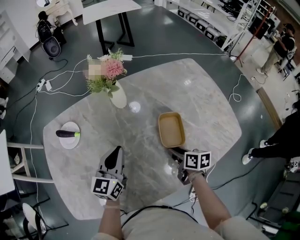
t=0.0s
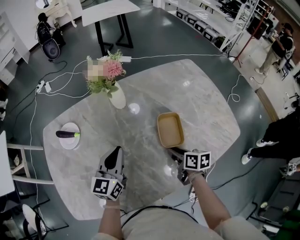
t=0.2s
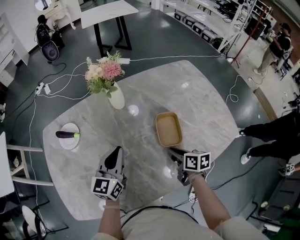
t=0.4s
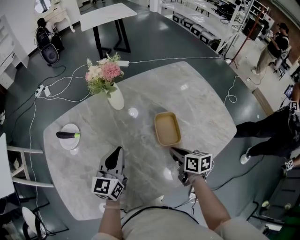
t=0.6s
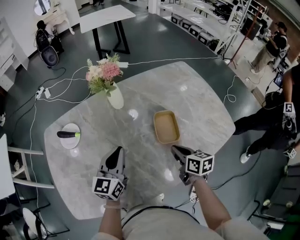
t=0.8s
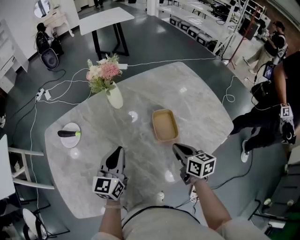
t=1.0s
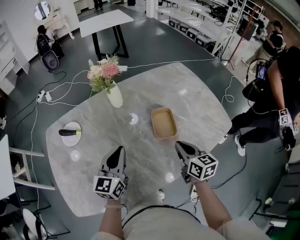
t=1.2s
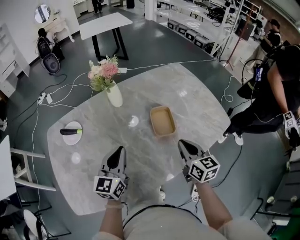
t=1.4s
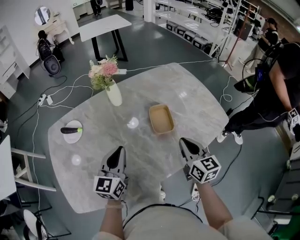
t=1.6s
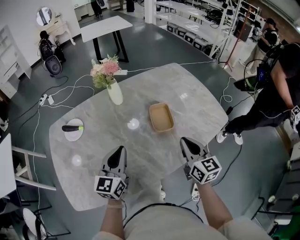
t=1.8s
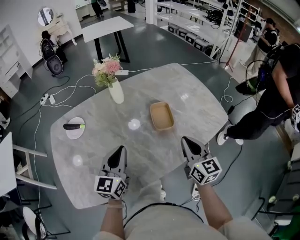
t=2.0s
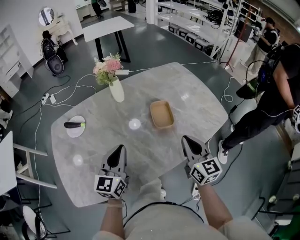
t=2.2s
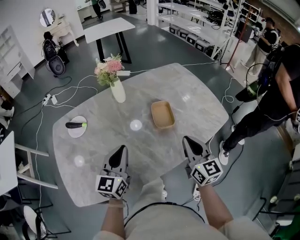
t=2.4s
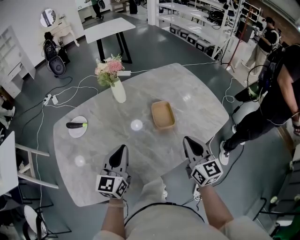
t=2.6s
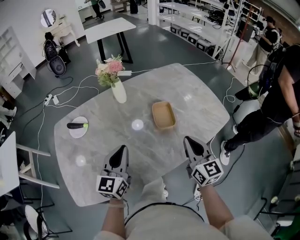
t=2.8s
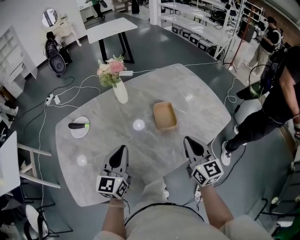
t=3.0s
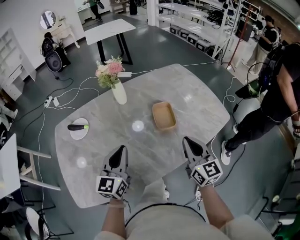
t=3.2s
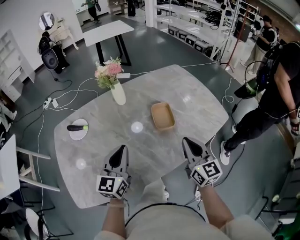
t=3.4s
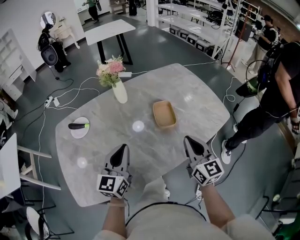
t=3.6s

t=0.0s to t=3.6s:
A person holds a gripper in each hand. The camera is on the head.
t=0.0s to t=1.8s: The left gripper goes some 10 cm backward. Meanwhile the right gripper moves upward and backward, some 20 cm, and turns by about 50 degrees.
t=1.8s to t=3.6s: The grippers stay close to where they were, moving slightly.

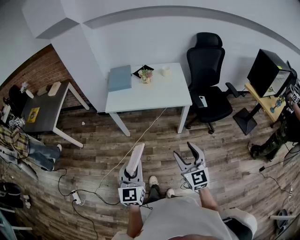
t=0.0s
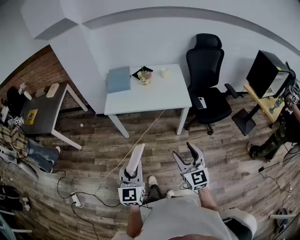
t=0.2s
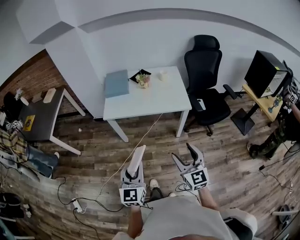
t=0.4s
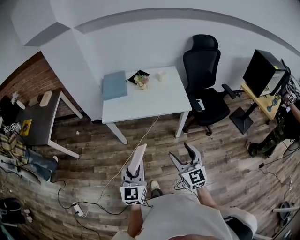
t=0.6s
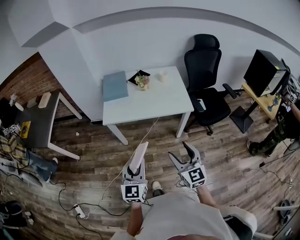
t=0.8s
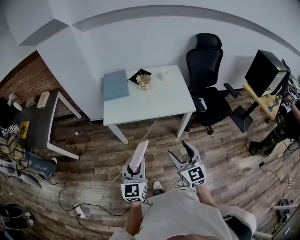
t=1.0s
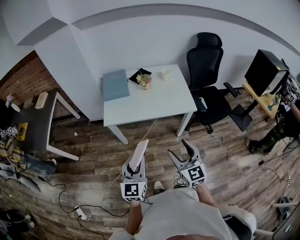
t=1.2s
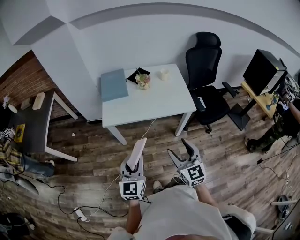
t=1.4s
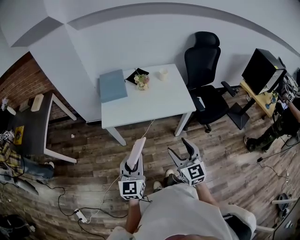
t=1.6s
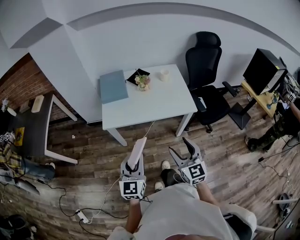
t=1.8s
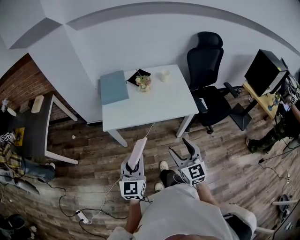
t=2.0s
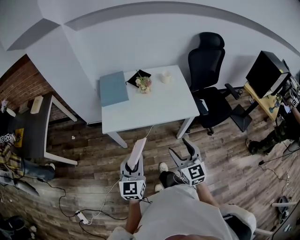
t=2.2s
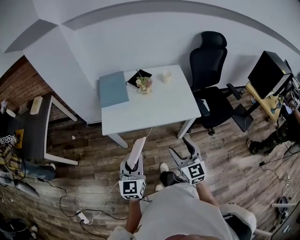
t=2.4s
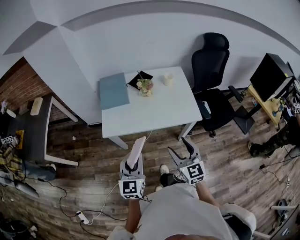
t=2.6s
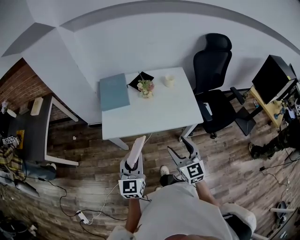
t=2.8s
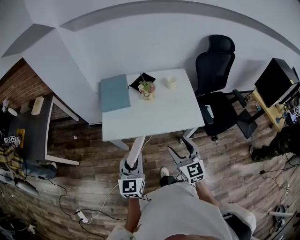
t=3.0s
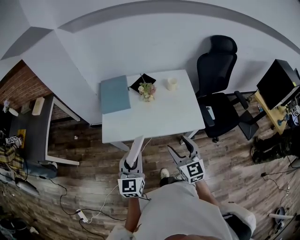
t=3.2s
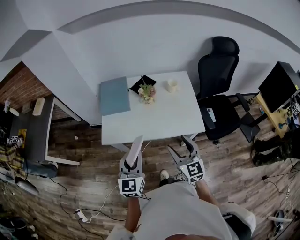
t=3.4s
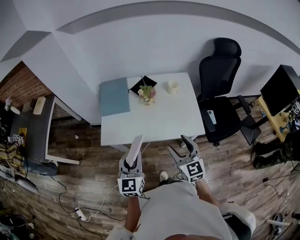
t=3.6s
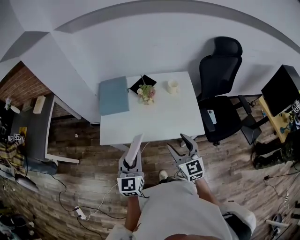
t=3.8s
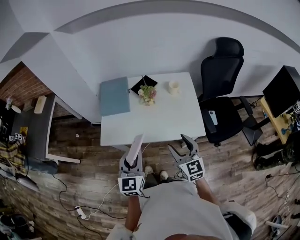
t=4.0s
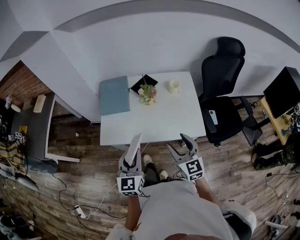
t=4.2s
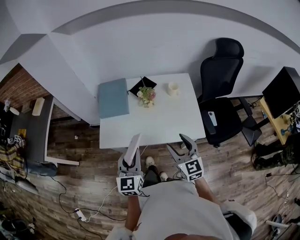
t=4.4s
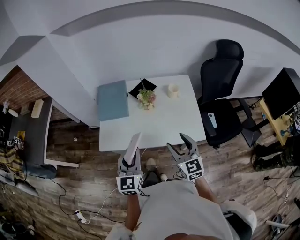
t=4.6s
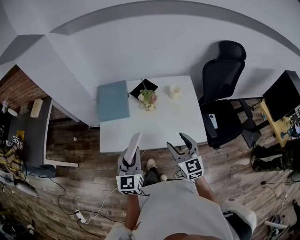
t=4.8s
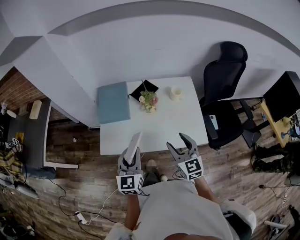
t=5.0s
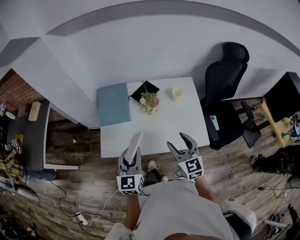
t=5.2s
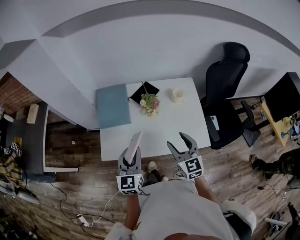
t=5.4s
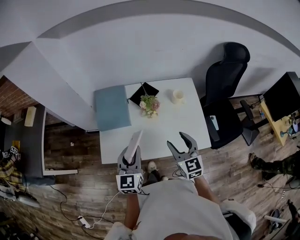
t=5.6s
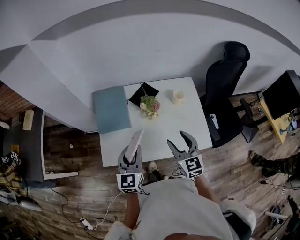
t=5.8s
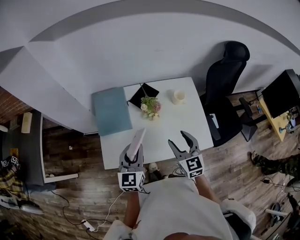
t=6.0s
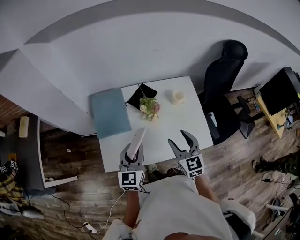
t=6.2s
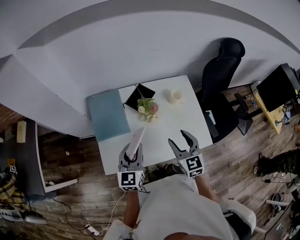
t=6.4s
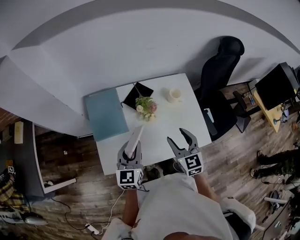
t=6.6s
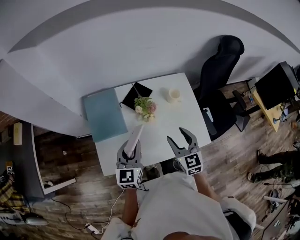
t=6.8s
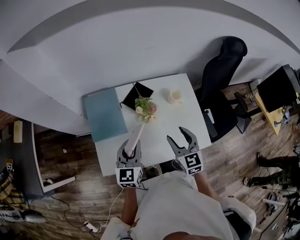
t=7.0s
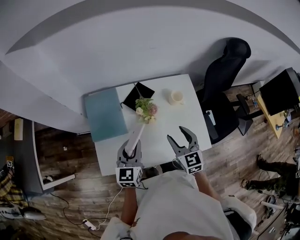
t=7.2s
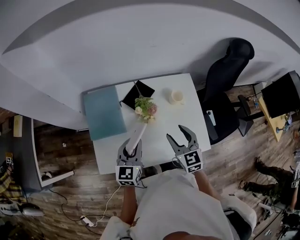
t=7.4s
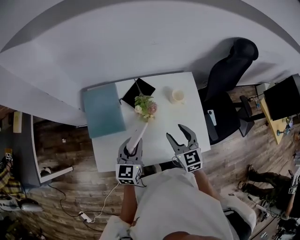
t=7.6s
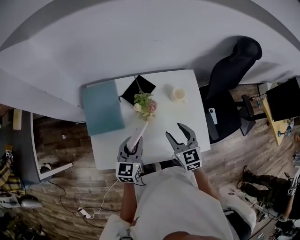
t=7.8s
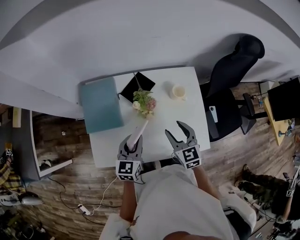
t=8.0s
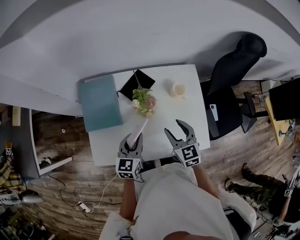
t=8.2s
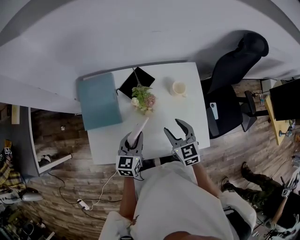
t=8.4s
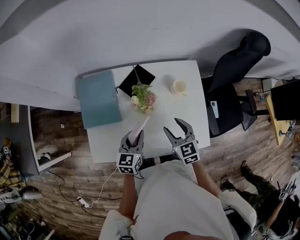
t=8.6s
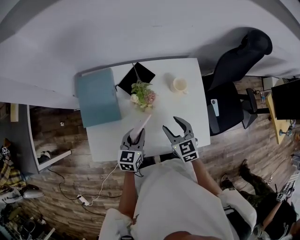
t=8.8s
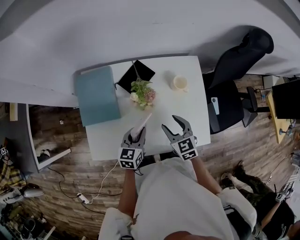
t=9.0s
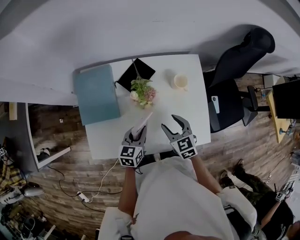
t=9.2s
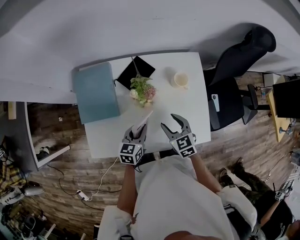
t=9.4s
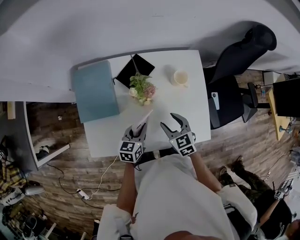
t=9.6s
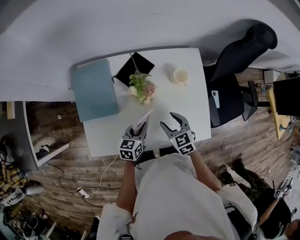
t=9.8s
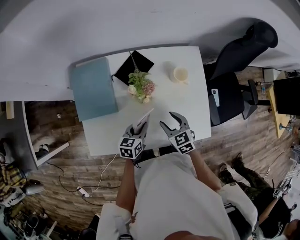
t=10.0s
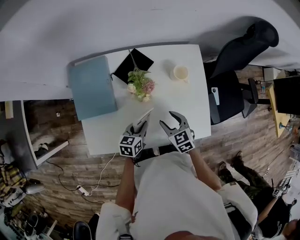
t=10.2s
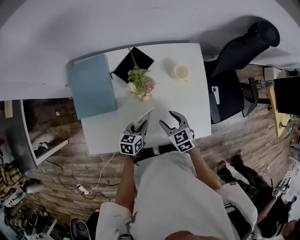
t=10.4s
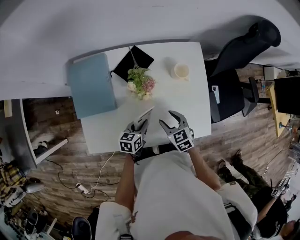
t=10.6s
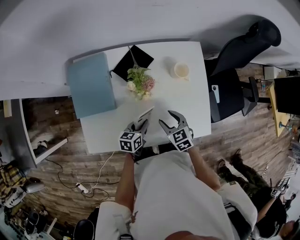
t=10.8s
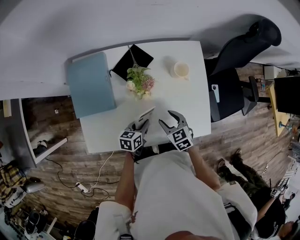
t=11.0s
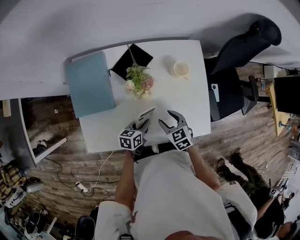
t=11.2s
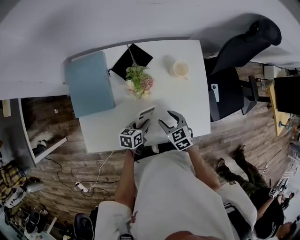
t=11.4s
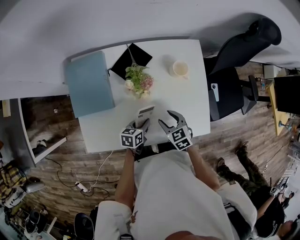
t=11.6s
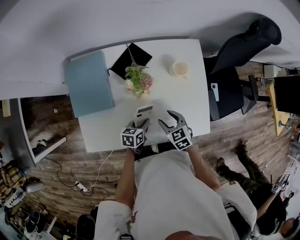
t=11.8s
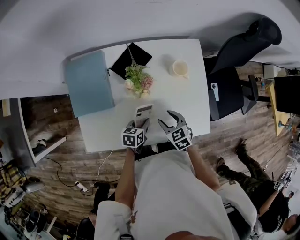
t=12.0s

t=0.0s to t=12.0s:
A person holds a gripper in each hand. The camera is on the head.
t=0.0s to t=1.6s: The two grippers go some 20 cm forward and to the left.
t=1.6s to t=3.0s: Both grippers move forward, about 15 cm.
t=3.0s to t=4.4s: Both grippers travel together forward, about 10 cm.
t=4.4s to t=6.0s: Both grippers move forward, some 15 cm.
t=6.0s to t=7.6s: The left gripper travels forward and downward by approximately 10 cm. Meanwhile the right gripper travels forward by roughly 10 cm.
t=7.6s to t=9.0s: The grippers both shift downward by some 10 cm.
t=9.0s to t=10.4s: Both grippers move downward, some 10 cm.
t=10.4s to t=12.0s: The left gripper moves about 5 cm.

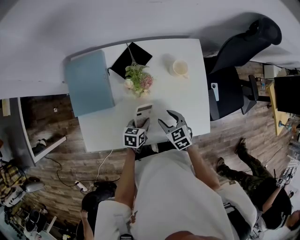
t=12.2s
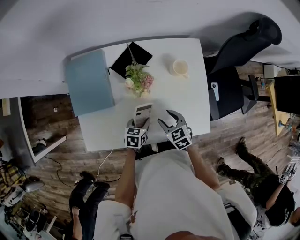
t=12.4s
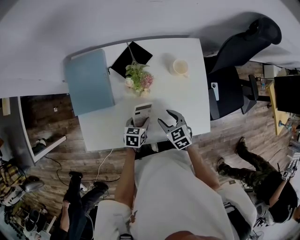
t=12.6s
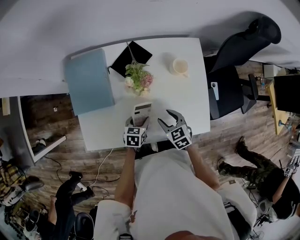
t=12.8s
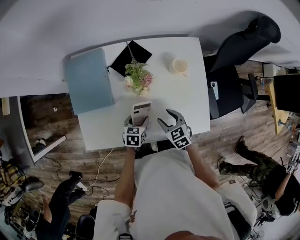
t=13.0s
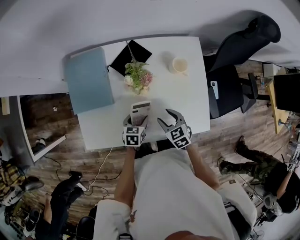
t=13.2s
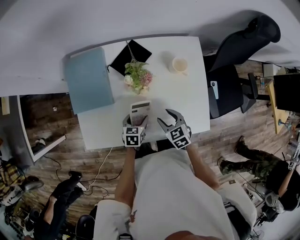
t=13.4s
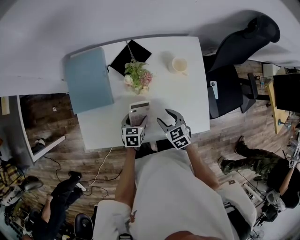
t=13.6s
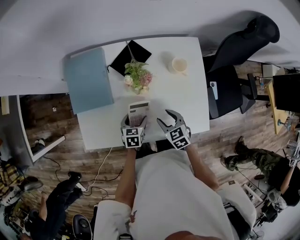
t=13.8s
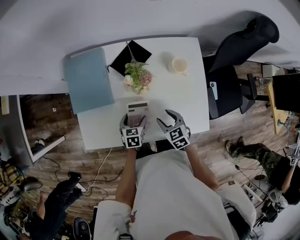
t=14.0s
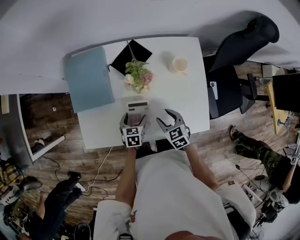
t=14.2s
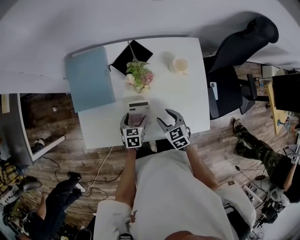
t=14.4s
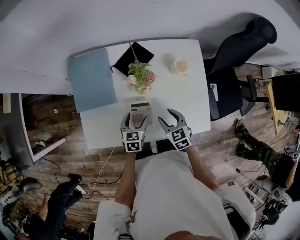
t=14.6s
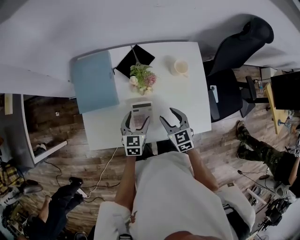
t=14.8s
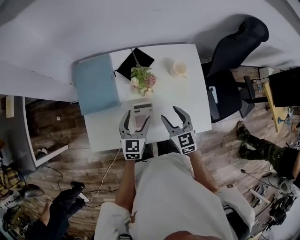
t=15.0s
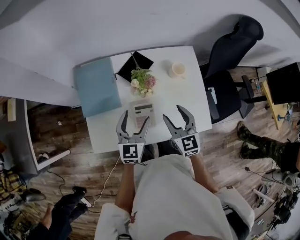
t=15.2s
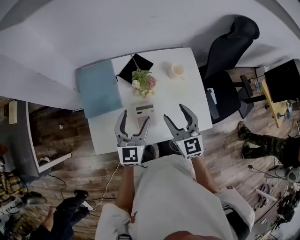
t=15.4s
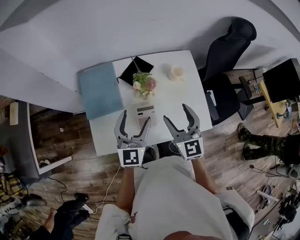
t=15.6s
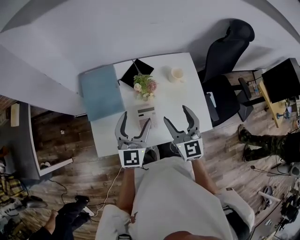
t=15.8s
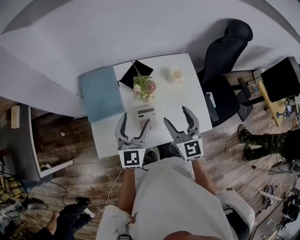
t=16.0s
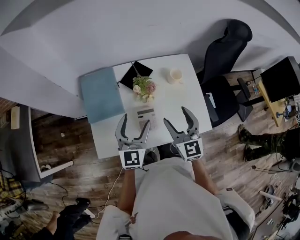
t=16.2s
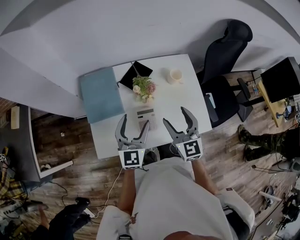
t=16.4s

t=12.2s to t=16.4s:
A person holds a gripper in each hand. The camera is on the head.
t=12.2s to t=13.6s: The left gripper opens its fingers.
t=13.6s to t=15.0s: Both grippers move upward, approximately 15 cm. The left gripper swivels approximately 30 degrees. The right gripper changes its angle by about 20 degrees.
t=15.0s to t=16.4s: Both grippers travel together upward, about 15 cm.

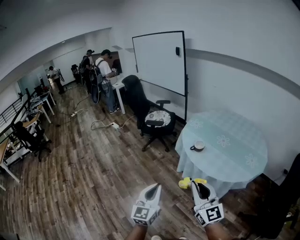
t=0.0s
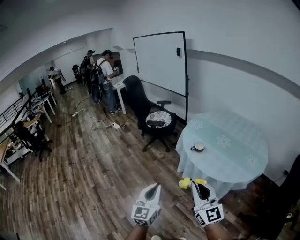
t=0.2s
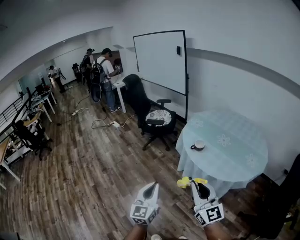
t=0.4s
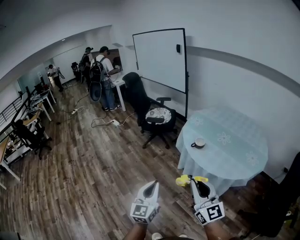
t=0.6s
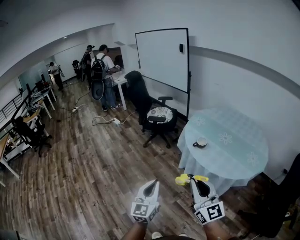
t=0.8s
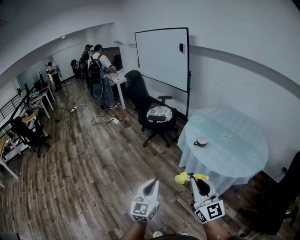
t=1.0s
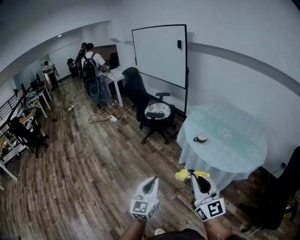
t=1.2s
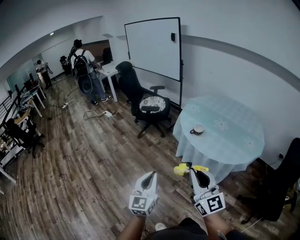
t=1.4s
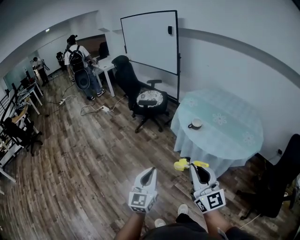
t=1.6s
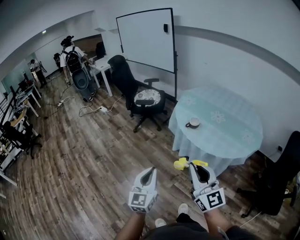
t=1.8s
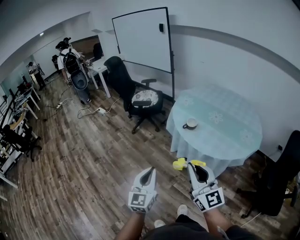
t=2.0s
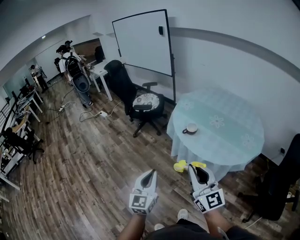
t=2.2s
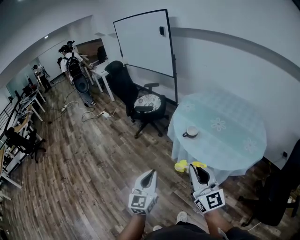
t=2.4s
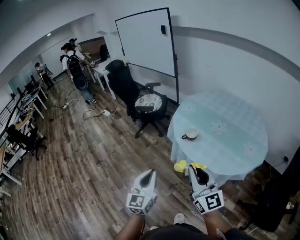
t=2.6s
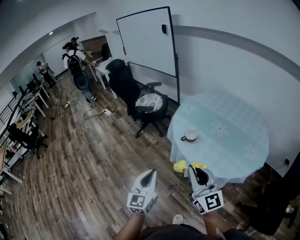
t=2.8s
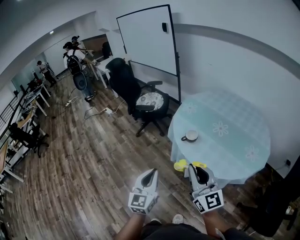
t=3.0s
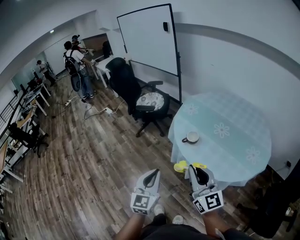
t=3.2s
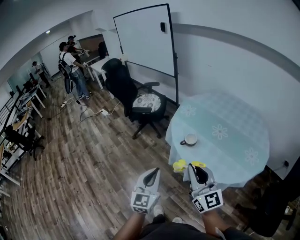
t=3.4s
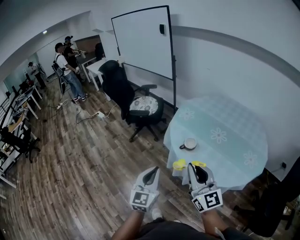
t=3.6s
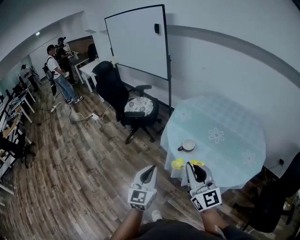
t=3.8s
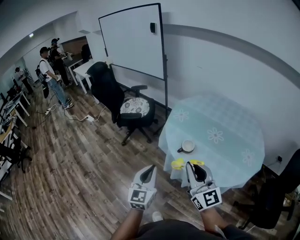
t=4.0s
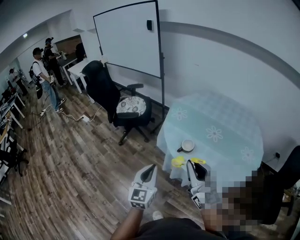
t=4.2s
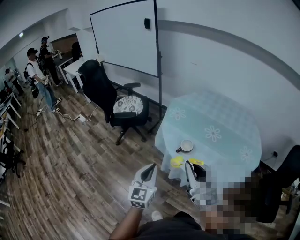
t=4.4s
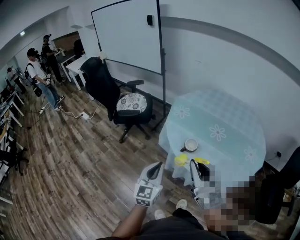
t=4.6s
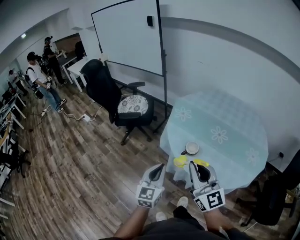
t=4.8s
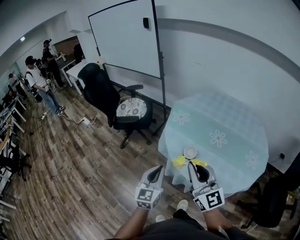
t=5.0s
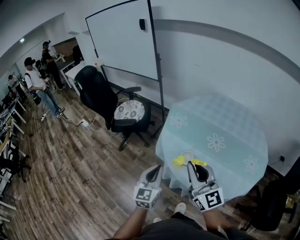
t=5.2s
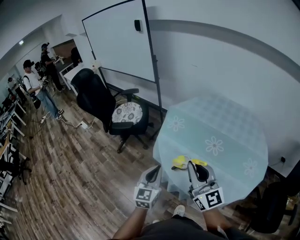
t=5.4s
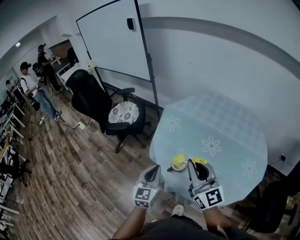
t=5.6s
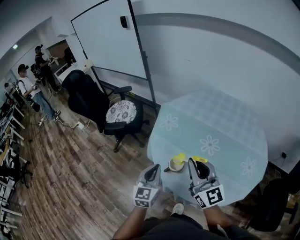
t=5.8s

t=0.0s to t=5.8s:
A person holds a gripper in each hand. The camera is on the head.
t=0.0s to t=1.4s: Both grippers move to the left, some 10 cm.
t=1.4s to t=2.8s: The left gripper heads to the right and forward, covering some 25 cm. The right gripper goes about 25 cm forward and to the right.
t=2.8s to t=4.4s: The right gripper moves forward and to the left, roughly 20 cm, while the left gripper goes some 25 cm forward.
t=4.4s to t=5.8s: Both grippers travel together forward and to the right, approximately 25 cm.
